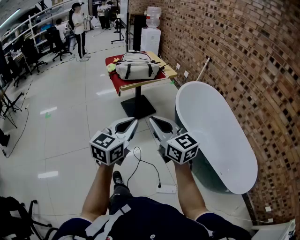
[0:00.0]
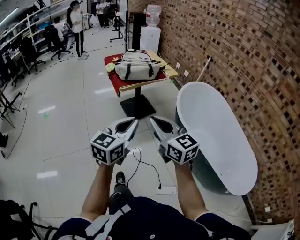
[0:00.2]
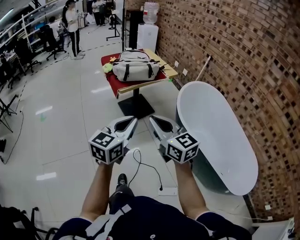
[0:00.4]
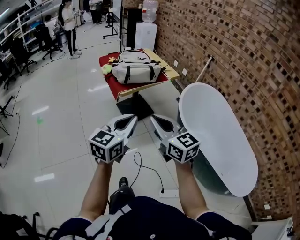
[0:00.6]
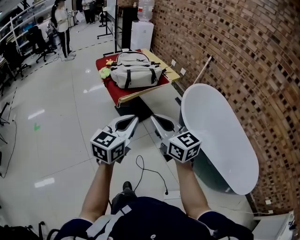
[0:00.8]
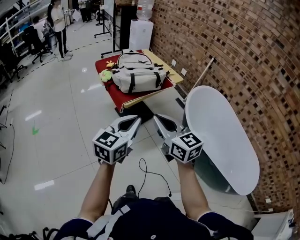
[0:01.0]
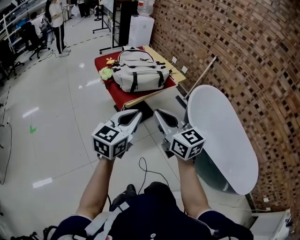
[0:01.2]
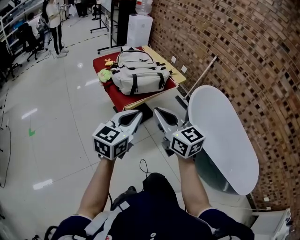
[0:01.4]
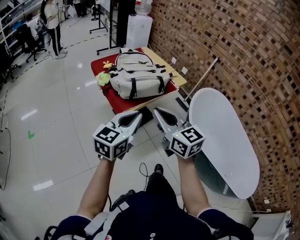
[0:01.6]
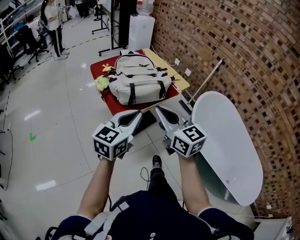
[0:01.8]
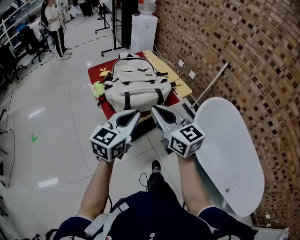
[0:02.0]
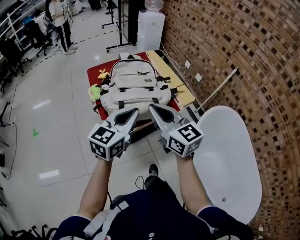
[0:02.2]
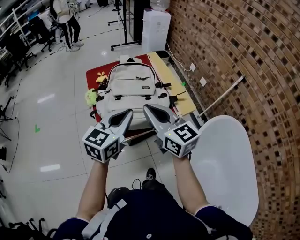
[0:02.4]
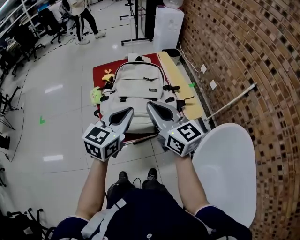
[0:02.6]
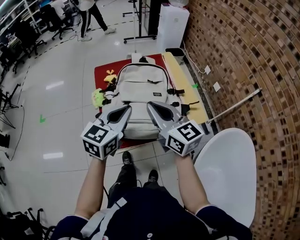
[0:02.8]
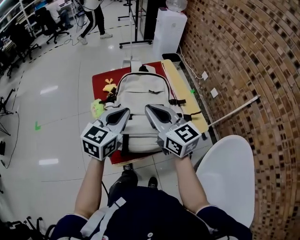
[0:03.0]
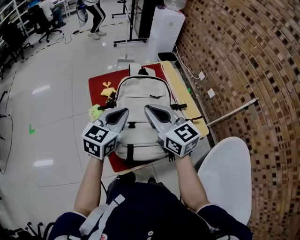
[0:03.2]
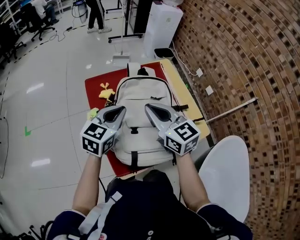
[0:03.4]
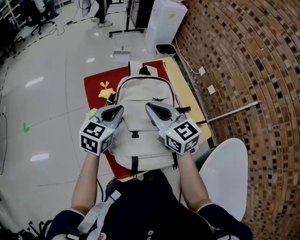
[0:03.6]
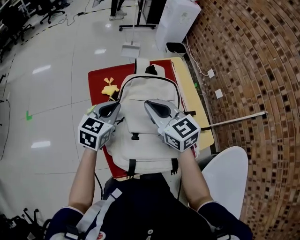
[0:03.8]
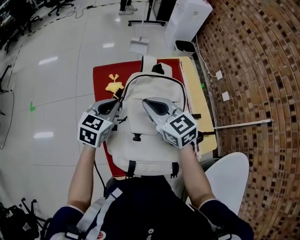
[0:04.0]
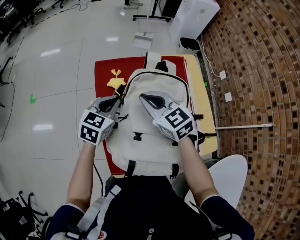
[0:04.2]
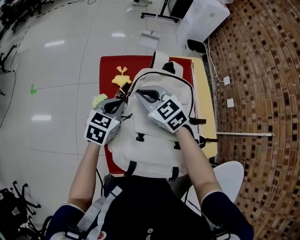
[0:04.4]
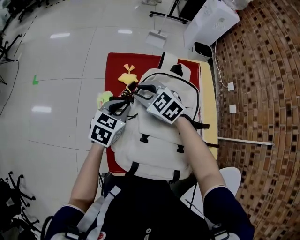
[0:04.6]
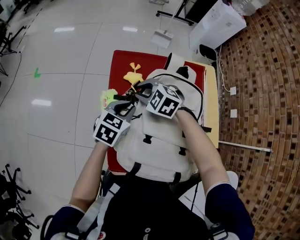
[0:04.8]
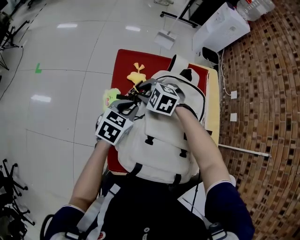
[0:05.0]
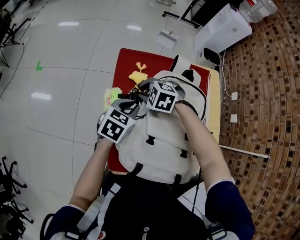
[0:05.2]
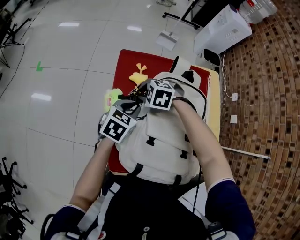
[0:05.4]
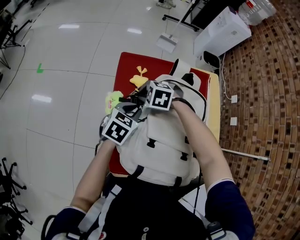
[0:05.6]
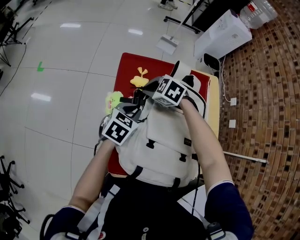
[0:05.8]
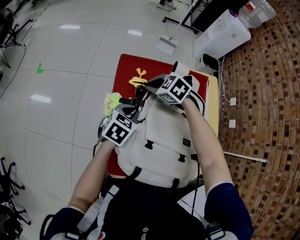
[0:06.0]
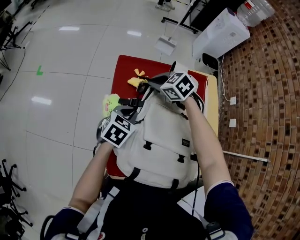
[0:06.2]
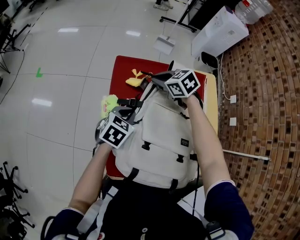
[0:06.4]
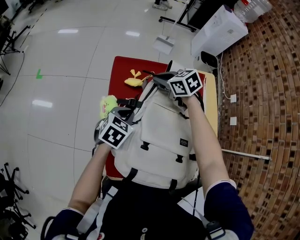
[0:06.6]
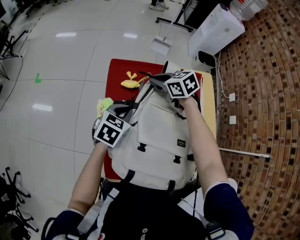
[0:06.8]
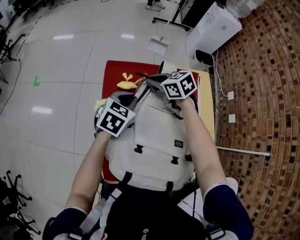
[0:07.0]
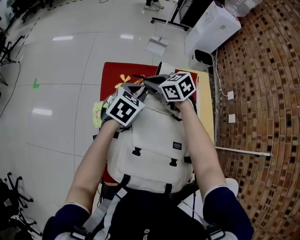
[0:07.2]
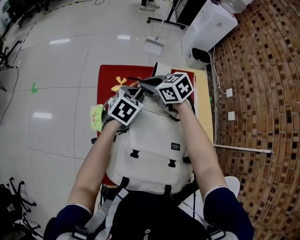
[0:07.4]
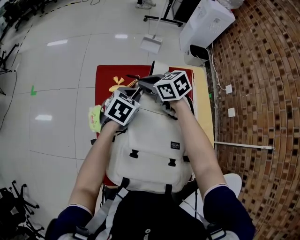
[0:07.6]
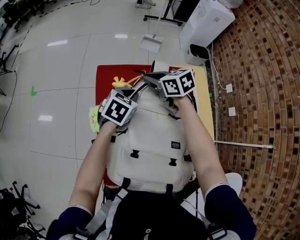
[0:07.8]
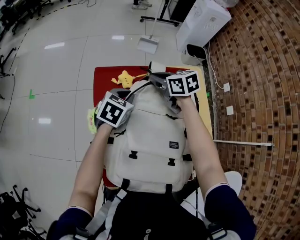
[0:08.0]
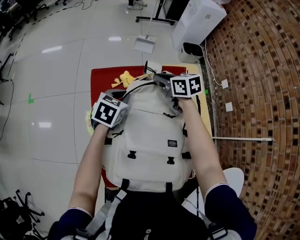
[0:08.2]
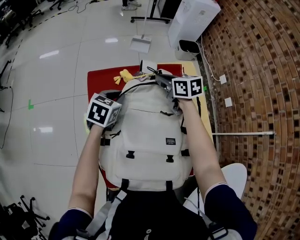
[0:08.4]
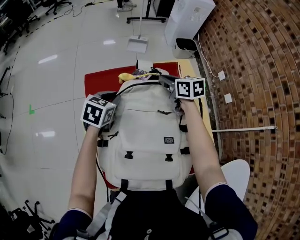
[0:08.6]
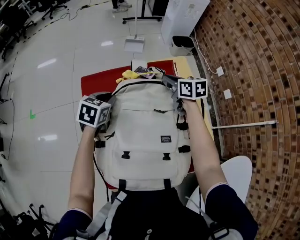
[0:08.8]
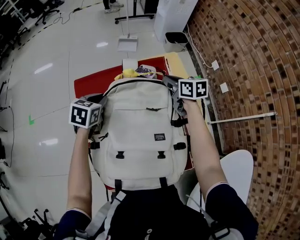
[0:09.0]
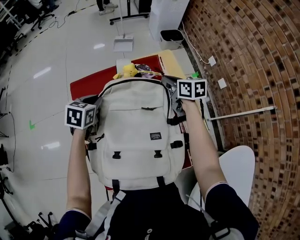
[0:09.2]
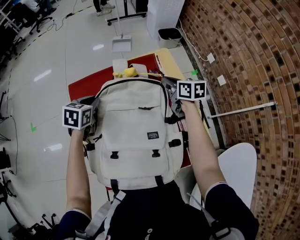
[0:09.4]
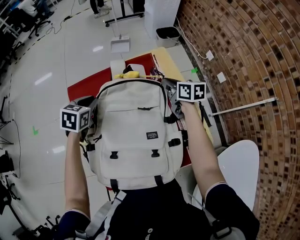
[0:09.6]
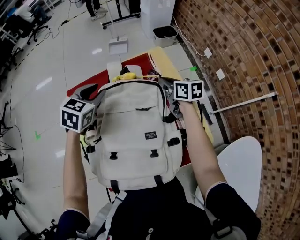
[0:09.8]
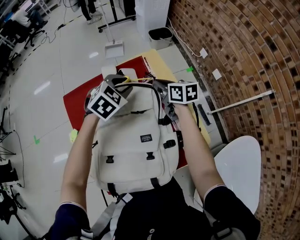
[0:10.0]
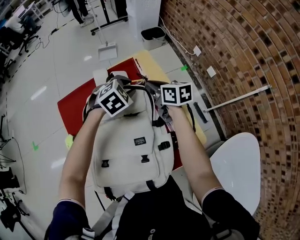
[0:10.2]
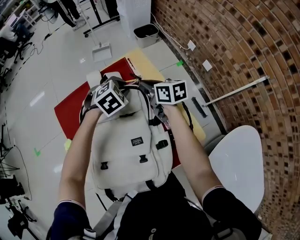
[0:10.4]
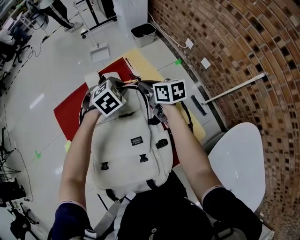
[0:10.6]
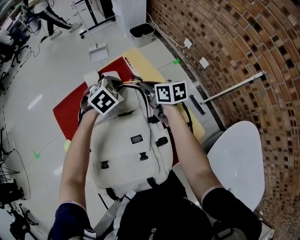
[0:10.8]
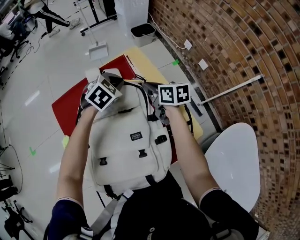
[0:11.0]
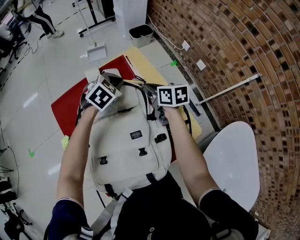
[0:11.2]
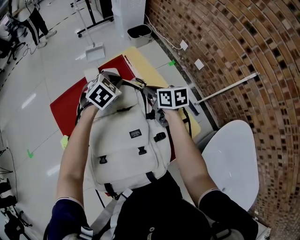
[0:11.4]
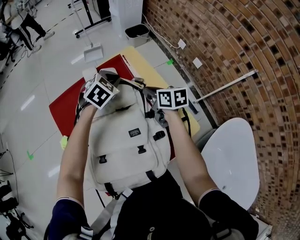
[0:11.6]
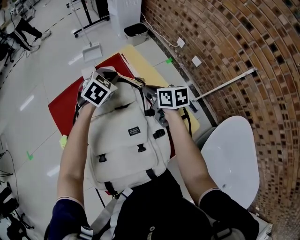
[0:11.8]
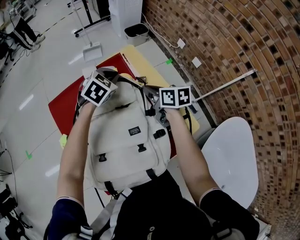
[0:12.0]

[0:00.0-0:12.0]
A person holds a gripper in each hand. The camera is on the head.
0:00.0 to 0:01.6: Both grippers travel together forward and to the left, about 35 cm.
0:01.6 to 0:03.0: Both grippers travel together forward, roughly 35 cm. The right gripper turns by approximately 20 degrees. Meanwhile the left gripper swivels some 20 degrees.
0:03.0 to 0:04.4: The right gripper moves forward, downward and to the left, about 25 cm, and swivels about 40 degrees, while the left gripper travels downward, forward and to the left by approximately 25 cm, and changes its angle by approximately 20 degrees.
0:04.4 to 0:06.0: The right gripper moves approximately 10 cm, rotates roughly 30 degrees, and opens, then closes again.
0:06.0 to 0:07.6: The right gripper goes some 5 cm to the right, and rotates roughly 30 degrees. The left gripper travels to the right and forward by about 15 cm.
0:07.6 to 0:09.0: The right gripper is displaced to the right by roughly 25 cm, and swivels roughly 40 degrees.
0:09.0 to 0:10.4: The right gripper heads to the right, covering about 5 cm, while the left gripper heads to the right, covering approximately 25 cm, and rolls clockwise, seen from behind, by approximately 50 degrees.
0:10.4 to 0:12.0: The left gripper closes up. The right gripper travels backward by roughly 5 cm.

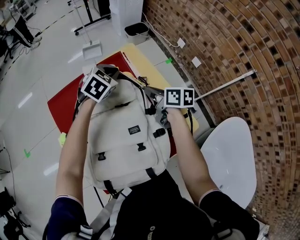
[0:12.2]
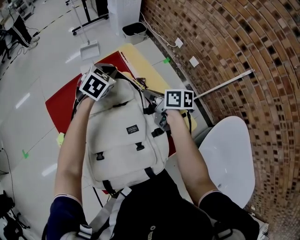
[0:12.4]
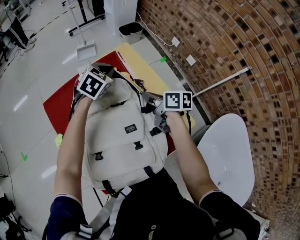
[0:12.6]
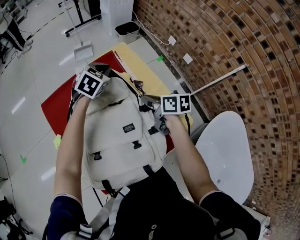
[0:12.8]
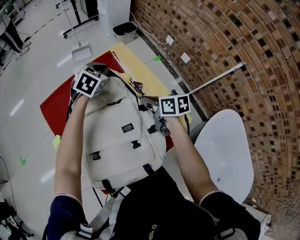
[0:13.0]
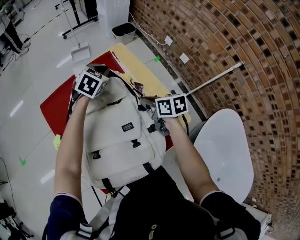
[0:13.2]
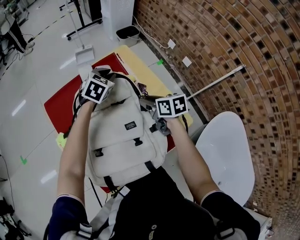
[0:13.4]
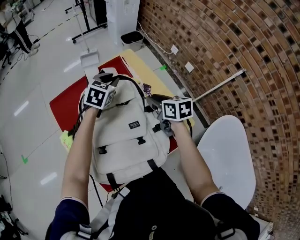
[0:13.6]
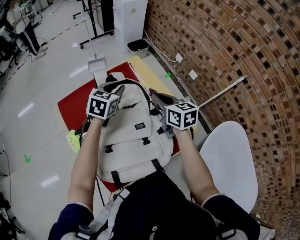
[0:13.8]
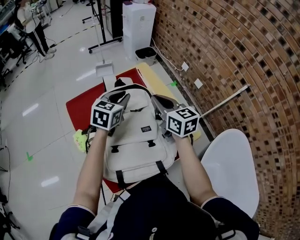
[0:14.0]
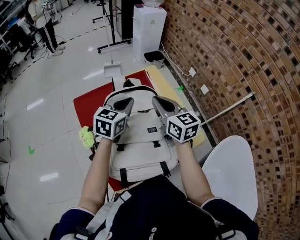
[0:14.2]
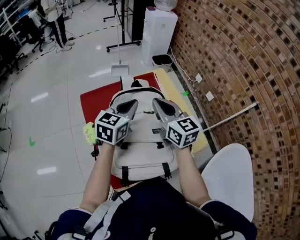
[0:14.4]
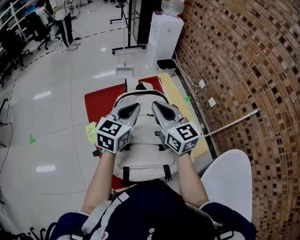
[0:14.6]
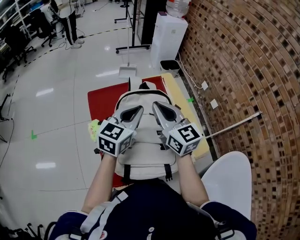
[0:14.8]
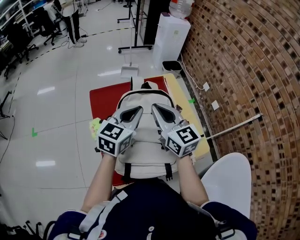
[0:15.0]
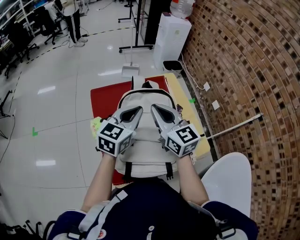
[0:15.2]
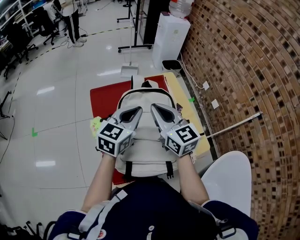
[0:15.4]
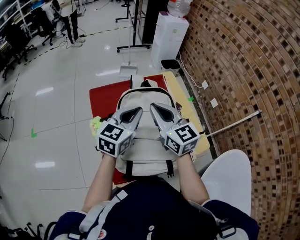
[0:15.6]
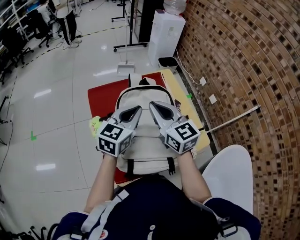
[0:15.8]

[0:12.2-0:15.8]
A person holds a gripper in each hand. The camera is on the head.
0:12.2 to 0:14.0: The left gripper is displaced backward and upward by some 10 cm, and rotates about 30 degrees; the right gripper is displaced upward and backward by about 15 cm, swivels approximately 40 degrees, and opens, then closes again.
0:14.0 to 0:15.8: The right gripper shifts approximately 15 cm to the left, upward and backward, and rotates some 20 degrees. Meanwhile the left gripper moves backward, upward and to the left, some 15 cm.

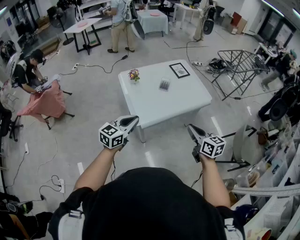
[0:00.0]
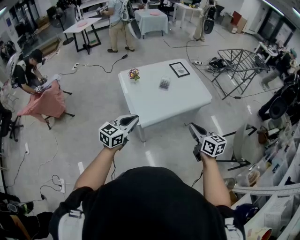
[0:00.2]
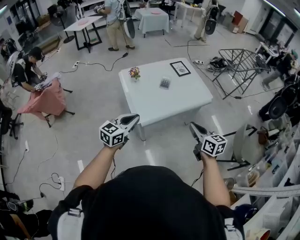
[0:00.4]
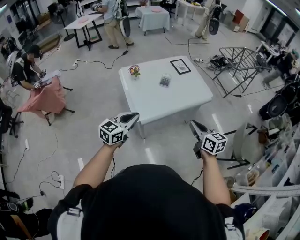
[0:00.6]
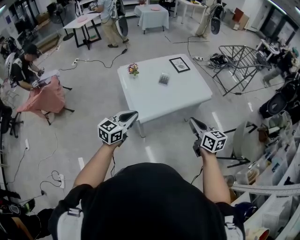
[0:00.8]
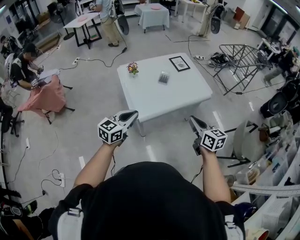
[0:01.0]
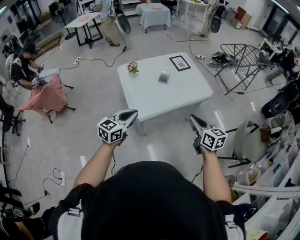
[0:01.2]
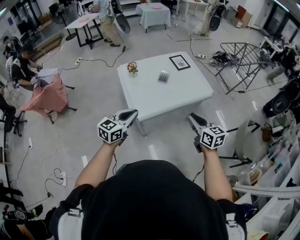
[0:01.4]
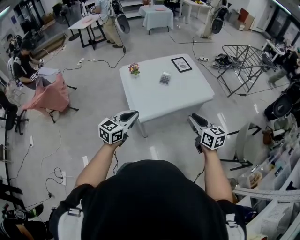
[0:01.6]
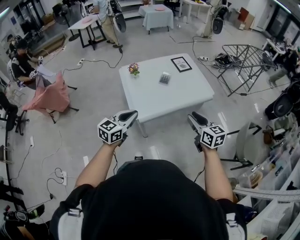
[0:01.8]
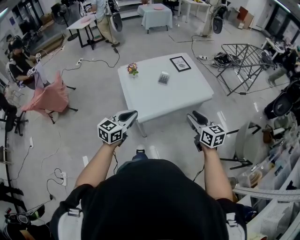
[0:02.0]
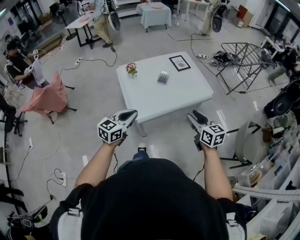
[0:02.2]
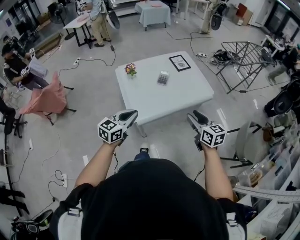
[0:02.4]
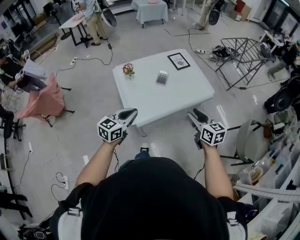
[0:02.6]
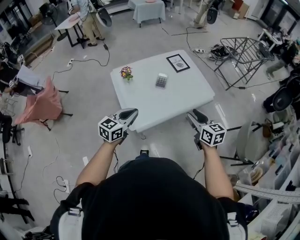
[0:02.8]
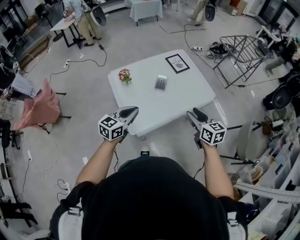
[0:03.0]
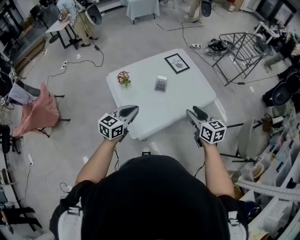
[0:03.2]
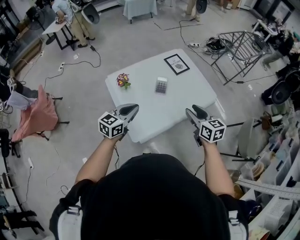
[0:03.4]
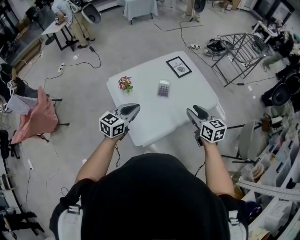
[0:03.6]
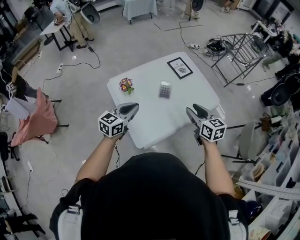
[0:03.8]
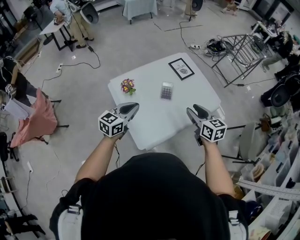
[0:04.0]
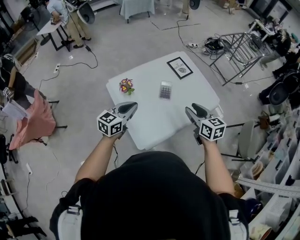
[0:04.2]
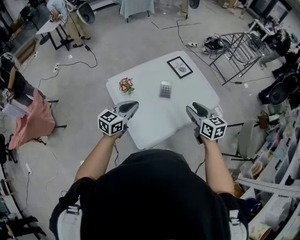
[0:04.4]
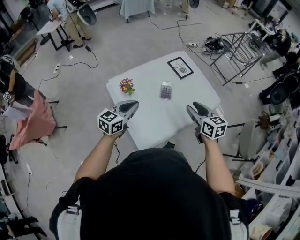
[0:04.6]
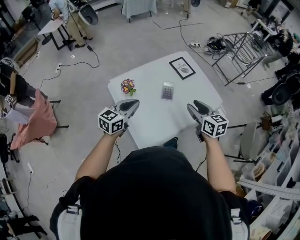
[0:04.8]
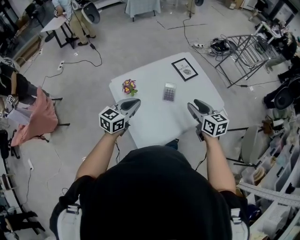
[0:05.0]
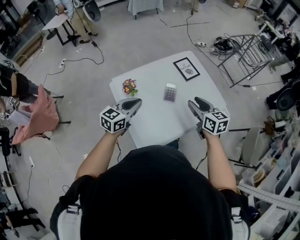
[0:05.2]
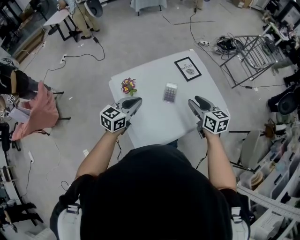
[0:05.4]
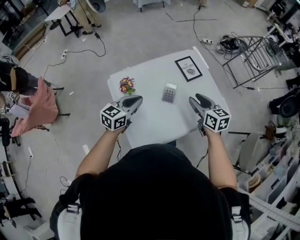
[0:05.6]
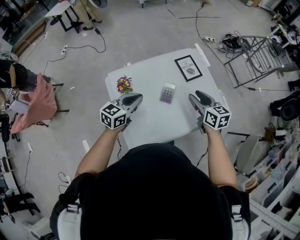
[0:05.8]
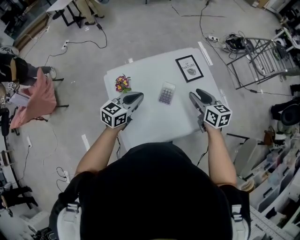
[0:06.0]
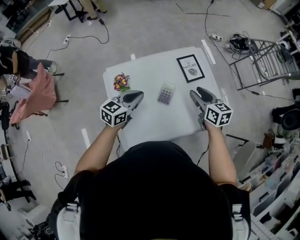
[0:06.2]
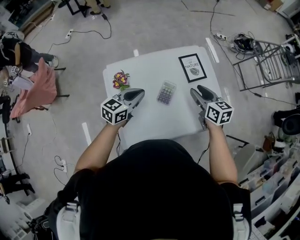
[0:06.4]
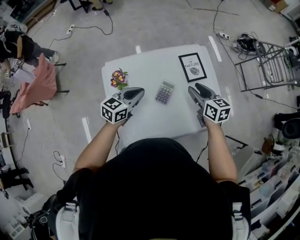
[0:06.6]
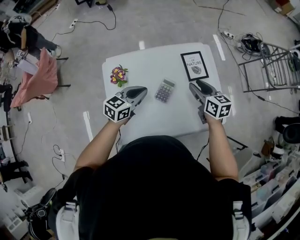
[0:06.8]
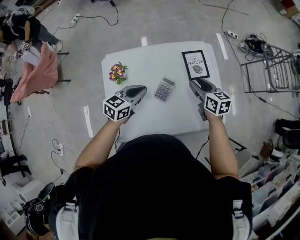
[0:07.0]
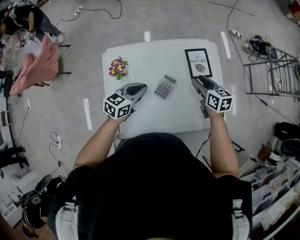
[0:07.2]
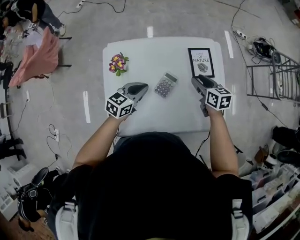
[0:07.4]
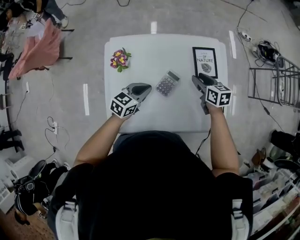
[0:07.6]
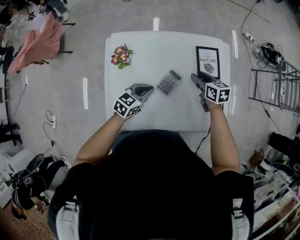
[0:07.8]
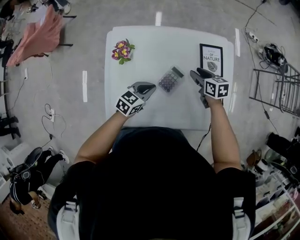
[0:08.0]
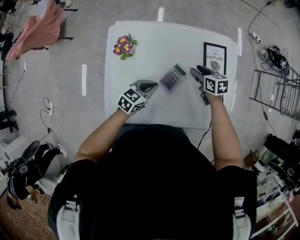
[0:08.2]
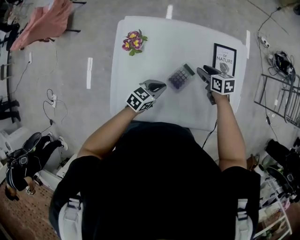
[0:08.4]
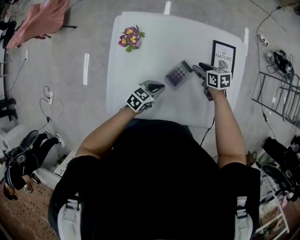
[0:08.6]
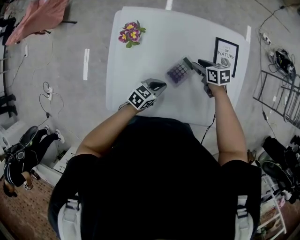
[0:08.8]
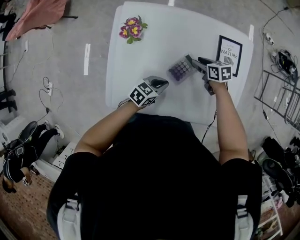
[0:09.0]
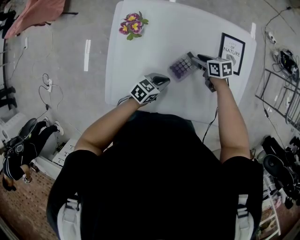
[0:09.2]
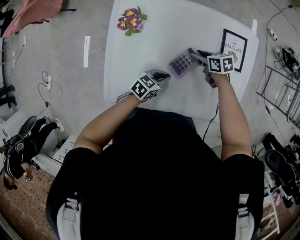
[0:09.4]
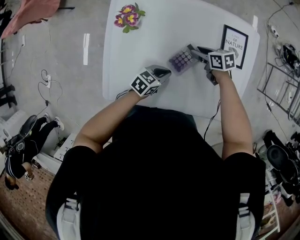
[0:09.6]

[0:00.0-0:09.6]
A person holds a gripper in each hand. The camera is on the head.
0:00.0 to 0:01.6: The right gripper shifts by approximately 5 cm, and opens its fingers.
0:01.6 to 0:03.2: Both grippers move forward, roughly 20 cm.
0:03.2 to 0:04.8: Both grippers move forward and to the left, roughly 15 cm.
0:04.8 to 0:06.4: The right gripper travels forward by roughly 25 cm. The left gripper is displaced forward and to the right by some 15 cm.
0:06.4 to 0:08.0: The left gripper shifts some 15 cm downward. Meanwhile the right gripper is displaced downward and forward by approximately 25 cm, and changes its angle by about 30 degrees.
0:08.0 to 0:09.6: The two grippers go roughly 10 cm downward. The right gripper rotates about 20 degrees.
